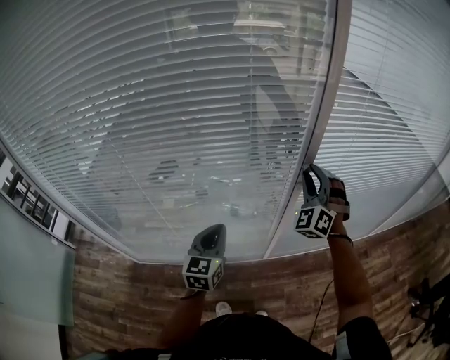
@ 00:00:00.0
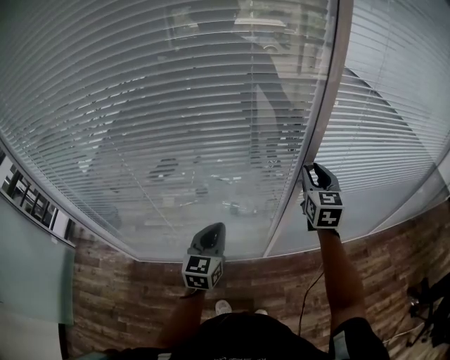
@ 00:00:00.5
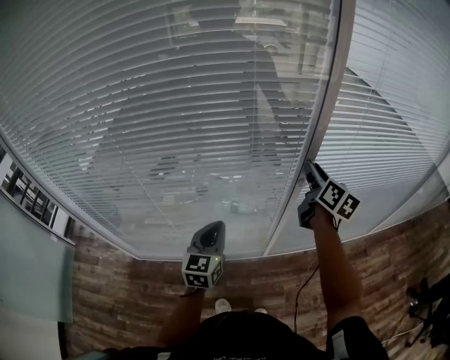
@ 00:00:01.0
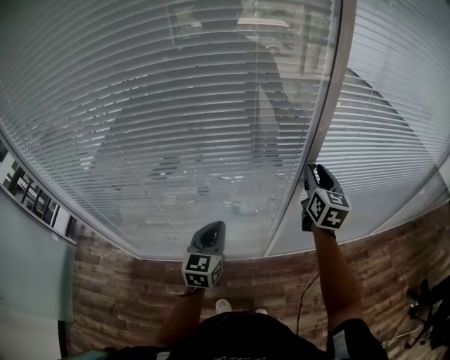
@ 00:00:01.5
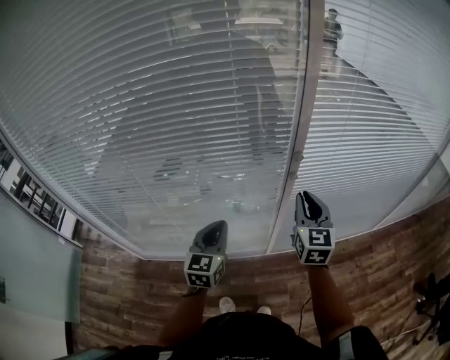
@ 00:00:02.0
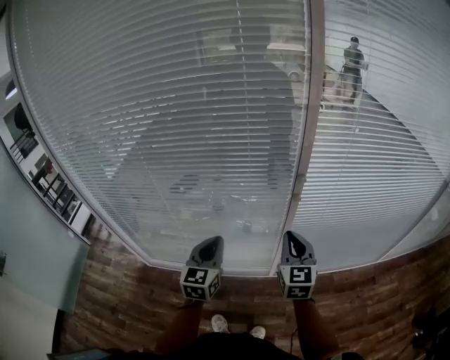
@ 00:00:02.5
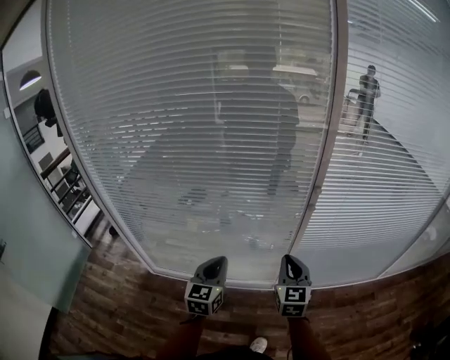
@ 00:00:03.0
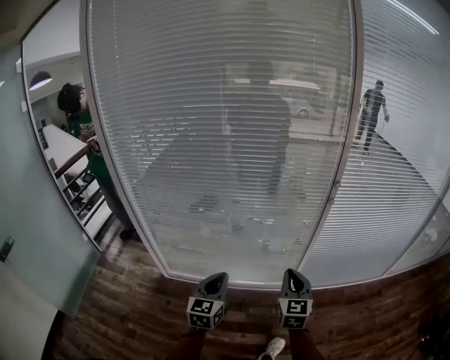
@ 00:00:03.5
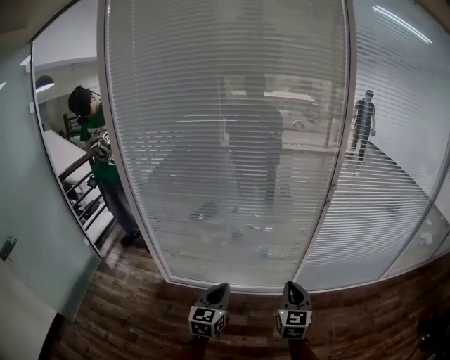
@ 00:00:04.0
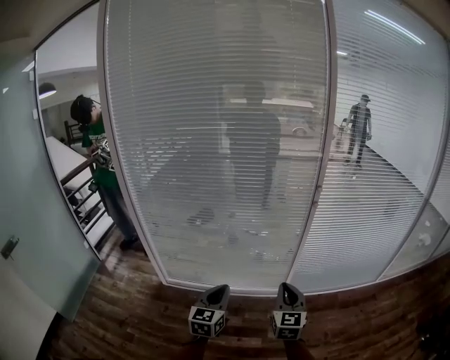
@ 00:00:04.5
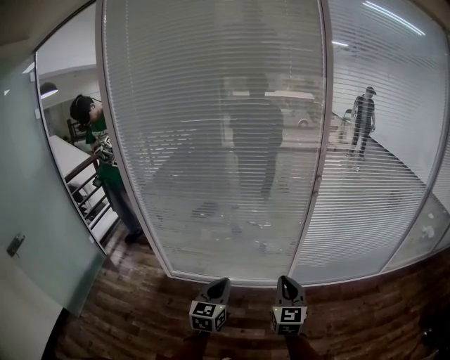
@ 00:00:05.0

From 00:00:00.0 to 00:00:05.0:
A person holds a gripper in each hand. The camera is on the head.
From 00:00:00.0 to 00:00:02.5: The right gripper shifts roughly 15 cm backward, twists approximately 60 degrees clockwise, seen from behind, and closes up. The left gripper moves upward and backward, about 10 cm.
From 00:00:02.5 to 00:00:05.0: Both grippers travel together backward, some 35 cm.

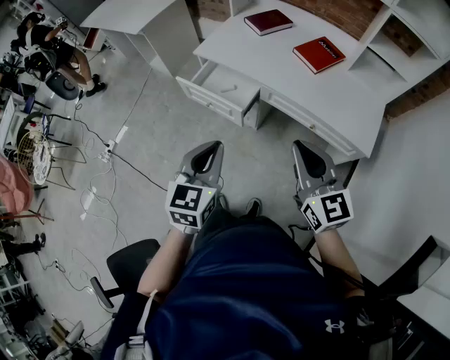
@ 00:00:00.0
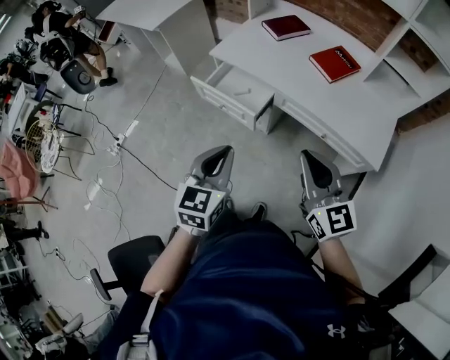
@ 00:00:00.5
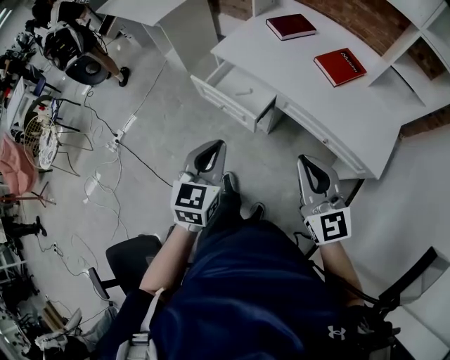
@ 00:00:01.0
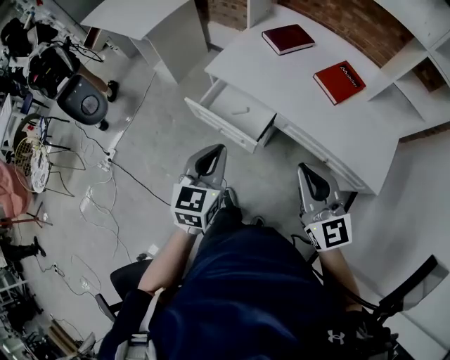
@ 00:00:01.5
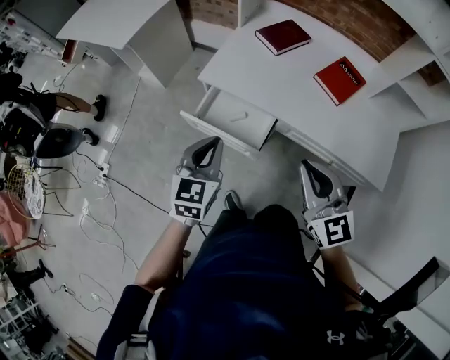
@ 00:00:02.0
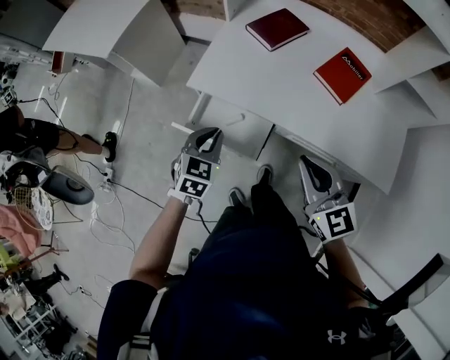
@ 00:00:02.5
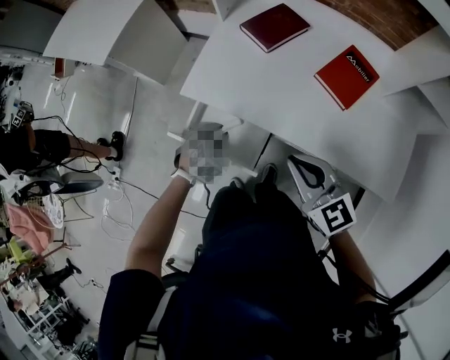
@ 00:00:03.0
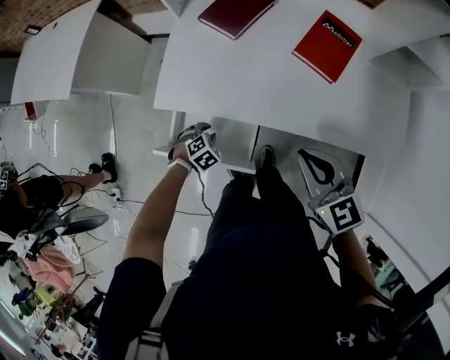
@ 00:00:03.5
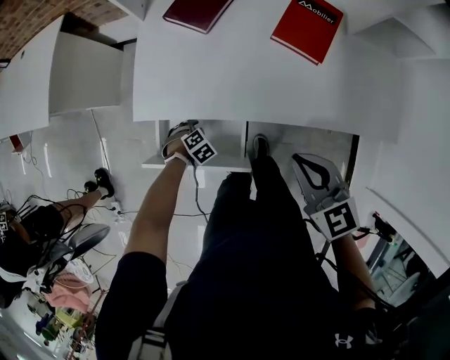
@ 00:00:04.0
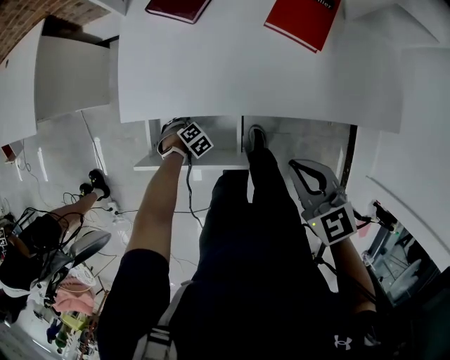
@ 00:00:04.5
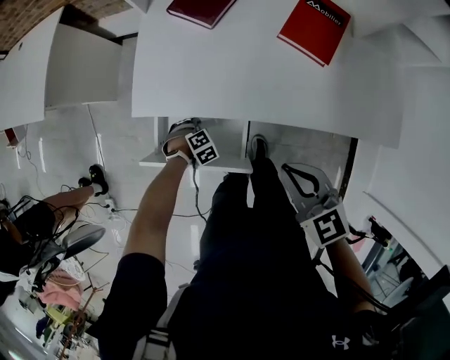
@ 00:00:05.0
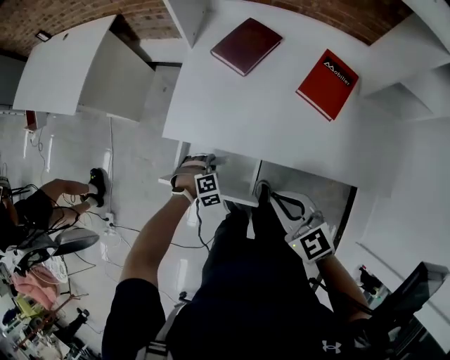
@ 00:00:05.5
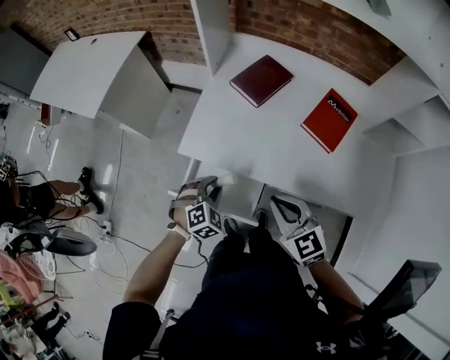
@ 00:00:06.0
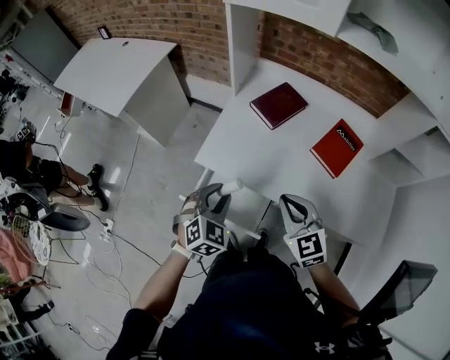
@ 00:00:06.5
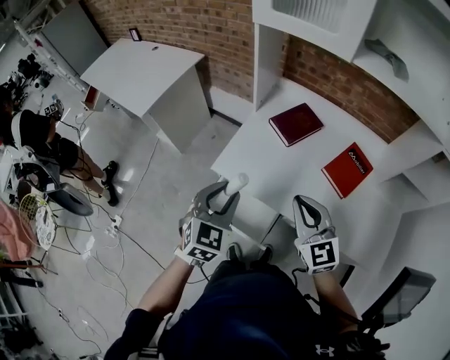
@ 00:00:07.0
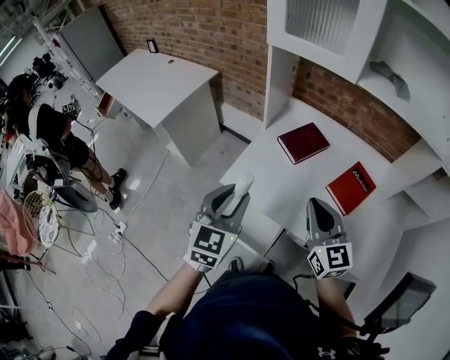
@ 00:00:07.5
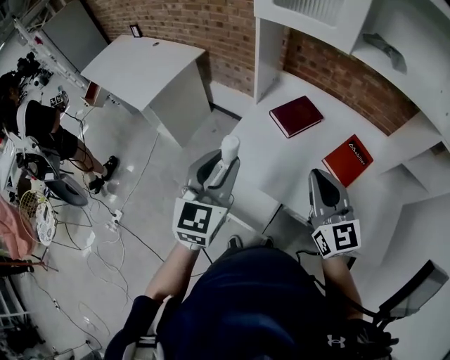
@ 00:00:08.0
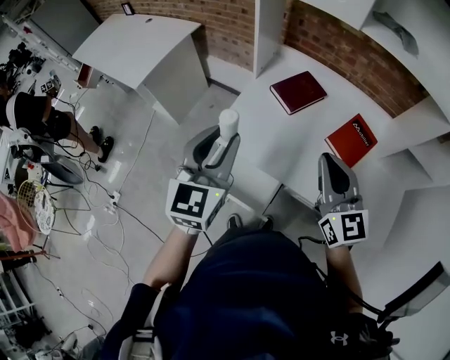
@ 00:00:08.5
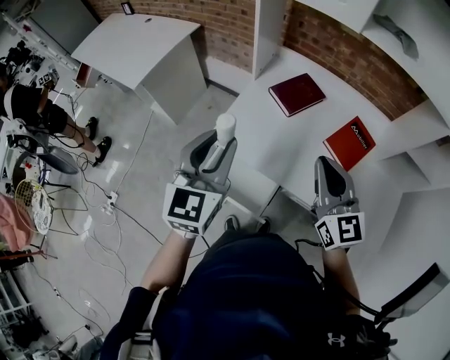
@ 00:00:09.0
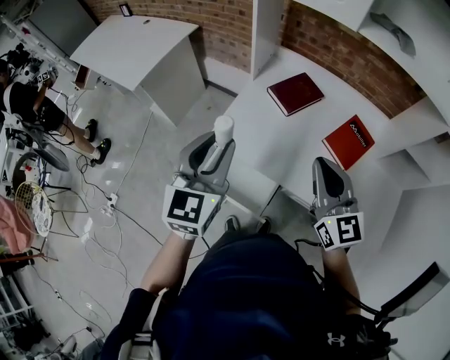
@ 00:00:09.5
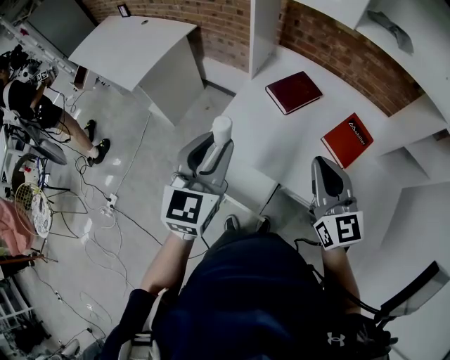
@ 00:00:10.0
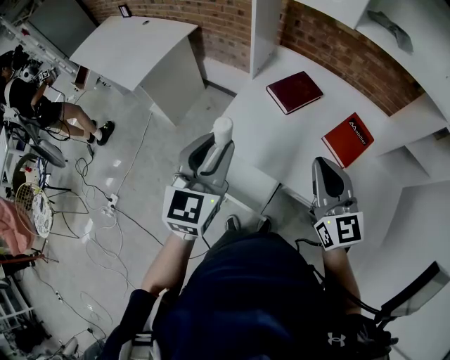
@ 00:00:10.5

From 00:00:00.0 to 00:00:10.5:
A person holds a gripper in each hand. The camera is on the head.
From 00:00:00.0 to 00:00:02.0: Both grippers travel together forward, roughly 25 cm.
From 00:00:02.0 to 00:00:04.0: The left gripper moves downward, about 40 cm, points its fingers about 60 degrees further downward, and opens its fingers. The right gripper goes some 15 cm downward, and turns by some 30 degrees.
From 00:00:04.0 to 00:00:06.5: The right gripper moves some 10 cm, and swivels approximately 20 degrees, while the left gripper shifts approximately 35 cm upward, and tips its fingers upward by approximately 40 degrees.
From 00:00:06.5 to 00:00:08.5: Both grippers move upward, about 15 cm. The left gripper points its fingers about 30 degrees further upward, while the right gripper swivels some 20 degrees.
From 00:00:08.5 to 00:00:10.5: The two grippers keep their place.

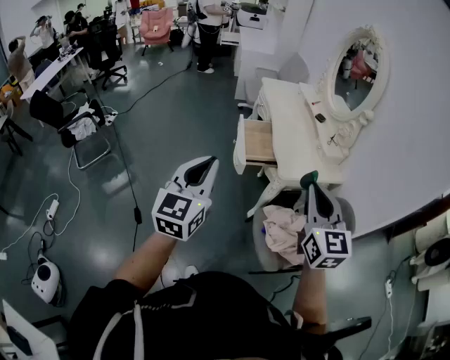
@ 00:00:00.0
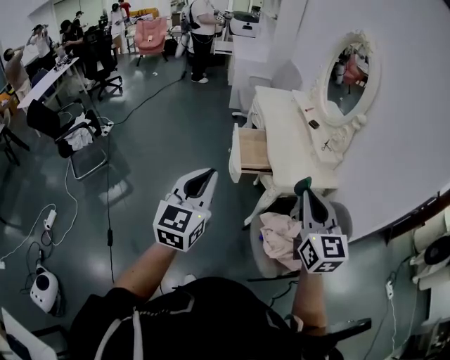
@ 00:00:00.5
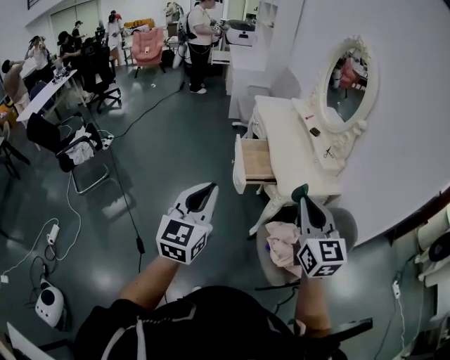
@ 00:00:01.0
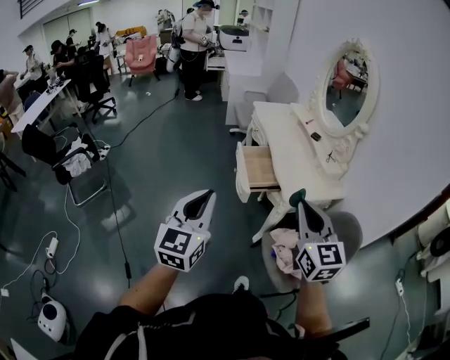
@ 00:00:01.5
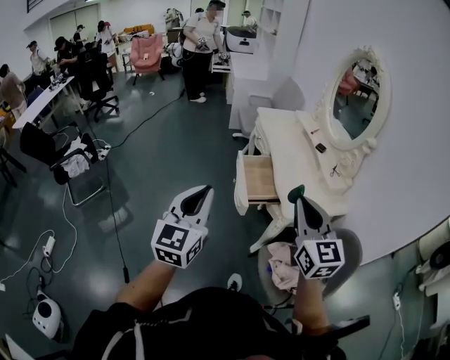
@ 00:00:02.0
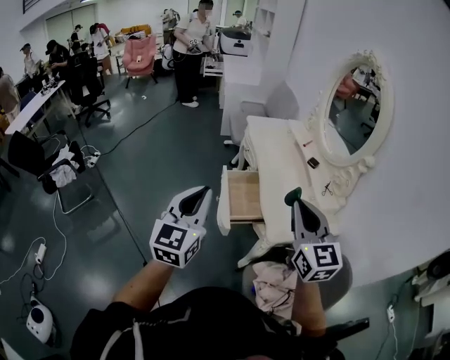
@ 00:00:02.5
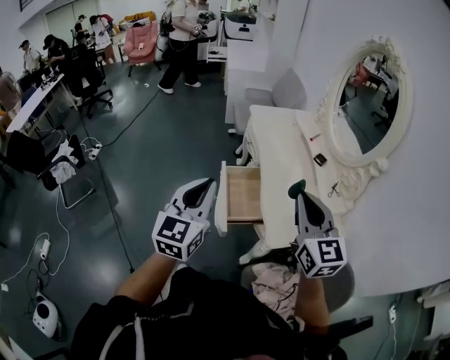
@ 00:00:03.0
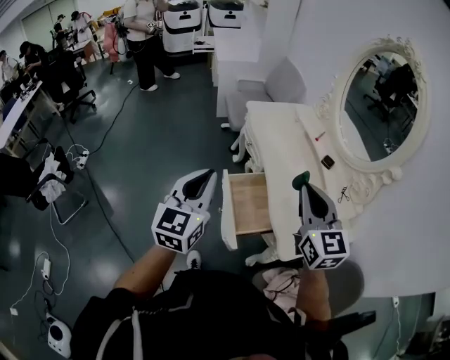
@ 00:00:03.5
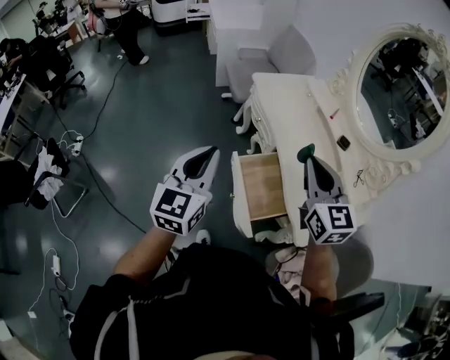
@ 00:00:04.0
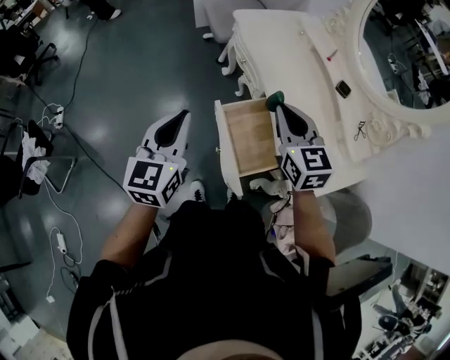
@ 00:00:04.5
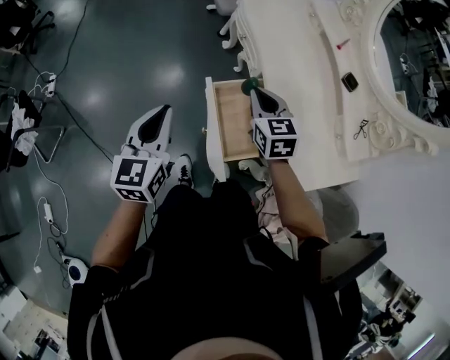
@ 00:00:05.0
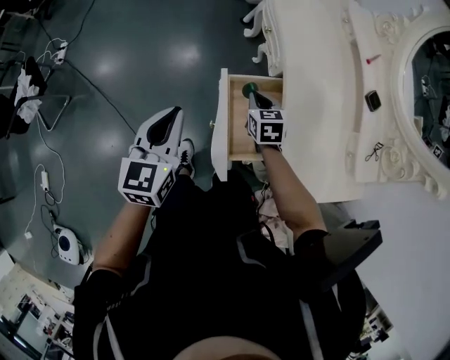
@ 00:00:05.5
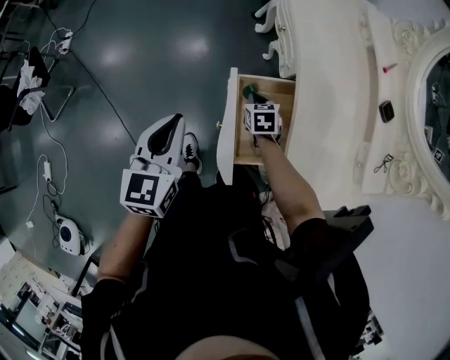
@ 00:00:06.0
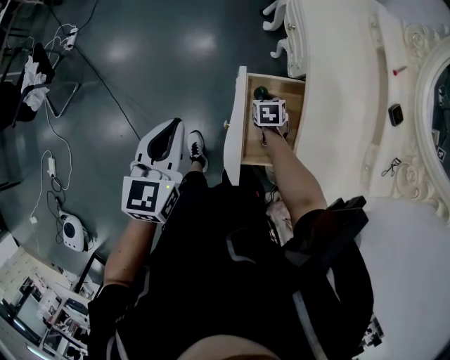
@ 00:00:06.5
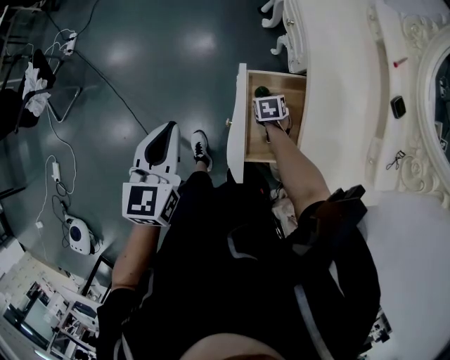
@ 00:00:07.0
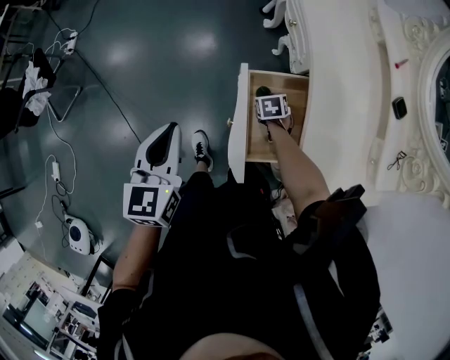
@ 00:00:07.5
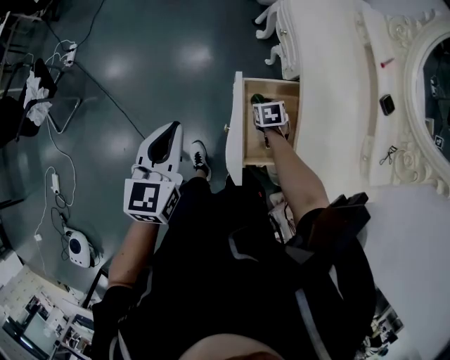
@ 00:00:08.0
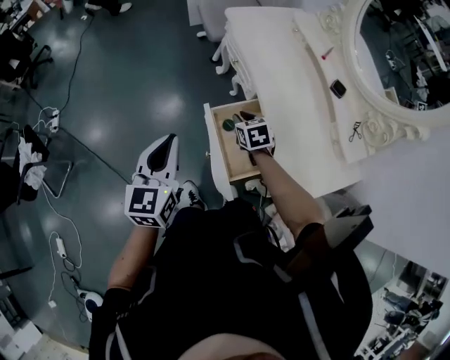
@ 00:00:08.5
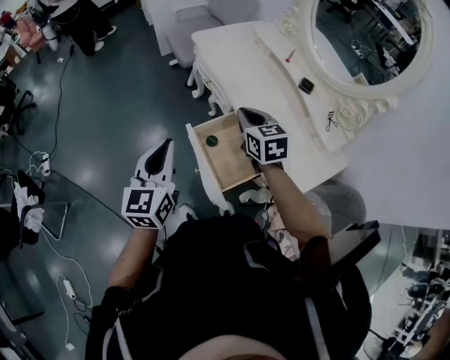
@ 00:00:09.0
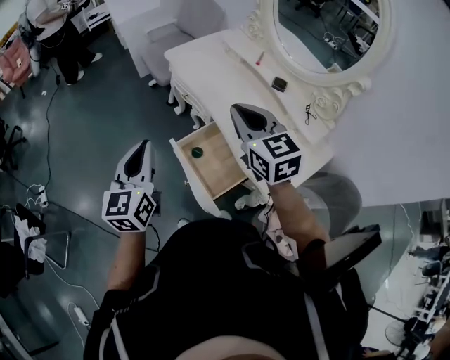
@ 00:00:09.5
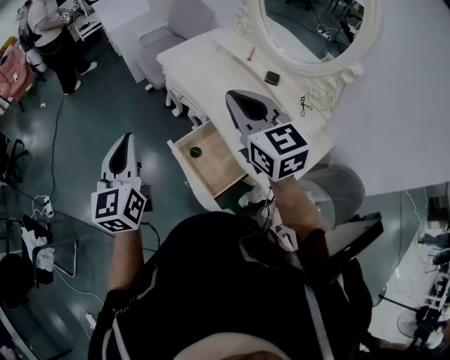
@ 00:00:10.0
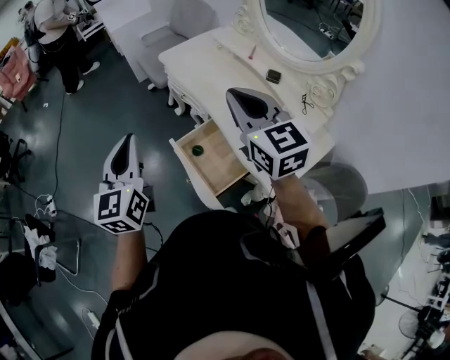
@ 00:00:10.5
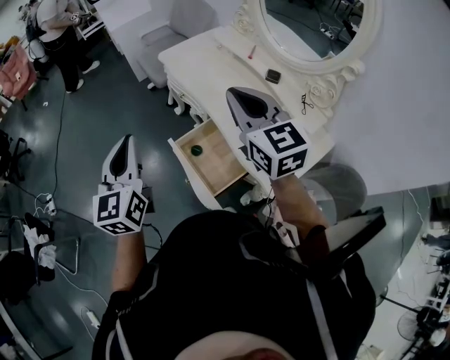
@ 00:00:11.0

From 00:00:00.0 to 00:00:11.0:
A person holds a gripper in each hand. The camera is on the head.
From 00:00:00.0 to 00:00:02.0: The two grippers go approximately 15 cm forward and to the left.
From 00:00:02.0 to 00:00:03.5: The two grippers go some 35 cm forward.
From 00:00:03.5 to 00:00:05.5: The right gripper shifts about 50 cm downward and forward, and points its fingers approximately 40 degrees further downward; the left gripper is displaced downward and forward by roughly 25 cm, and changes its angle by approximately 20 degrees.
From 00:00:05.5 to 00:00:07.5: The right gripper shifts about 15 cm downward, and turns by roughly 20 degrees; the left gripper travels to the left by about 5 cm.
From 00:00:07.5 to 00:00:09.0: The right gripper shifts about 40 cm upward, angles its fingers upward, by some 40 degrees, and opens, then closes once more; the left gripper goes roughly 15 cm upward and to the right, and changes its angle by some 30 degrees.
From 00:00:09.0 to 00:00:11.0: The left gripper heads upward, covering about 10 cm, while the right gripper travels upward by approximately 20 cm, and swivels about 20 degrees.
